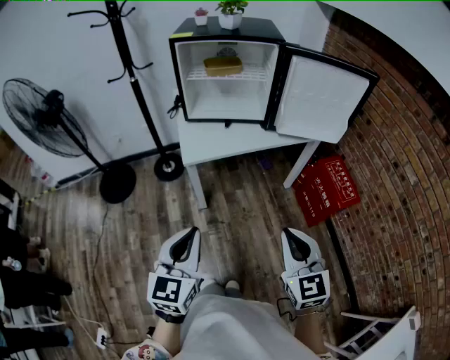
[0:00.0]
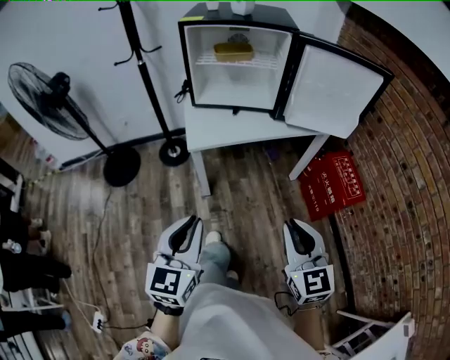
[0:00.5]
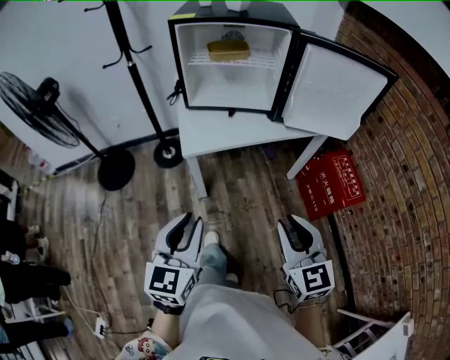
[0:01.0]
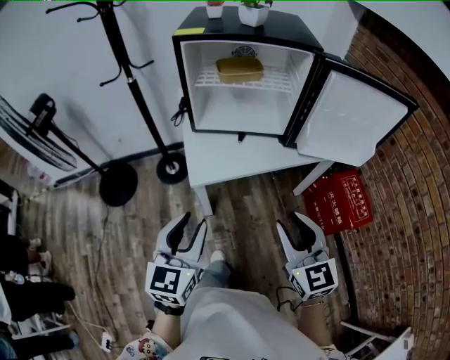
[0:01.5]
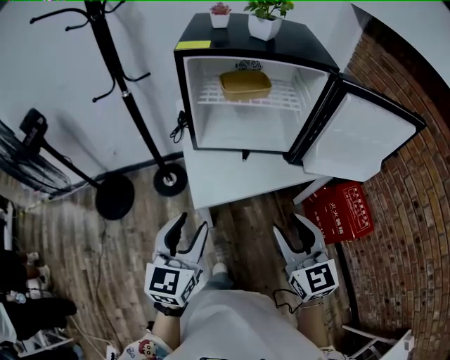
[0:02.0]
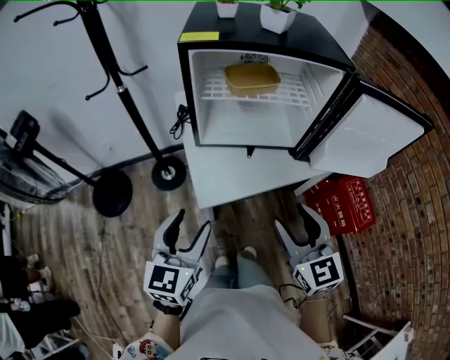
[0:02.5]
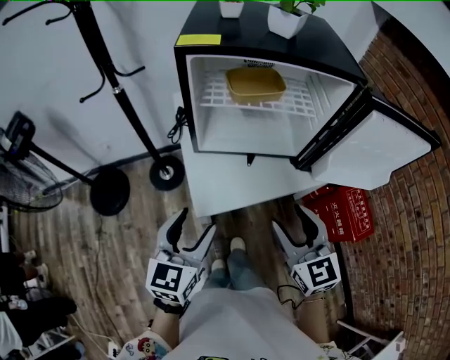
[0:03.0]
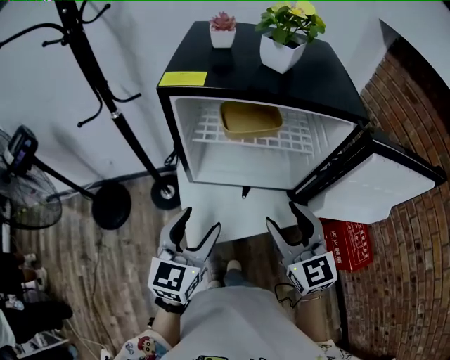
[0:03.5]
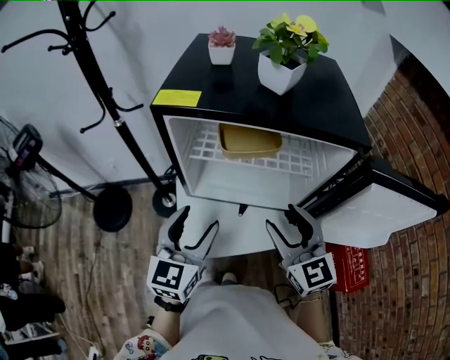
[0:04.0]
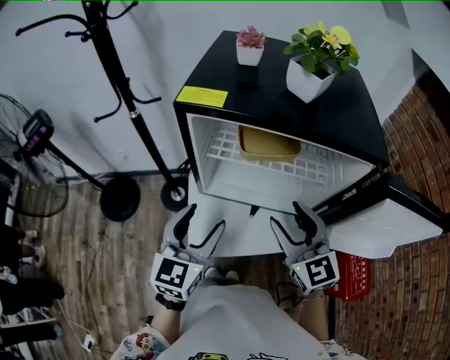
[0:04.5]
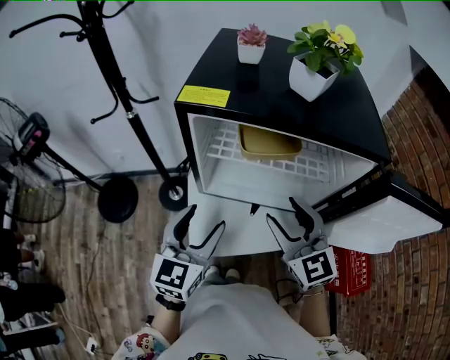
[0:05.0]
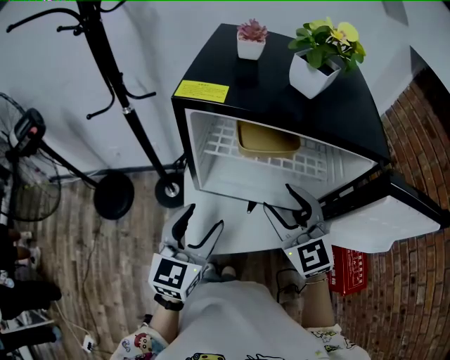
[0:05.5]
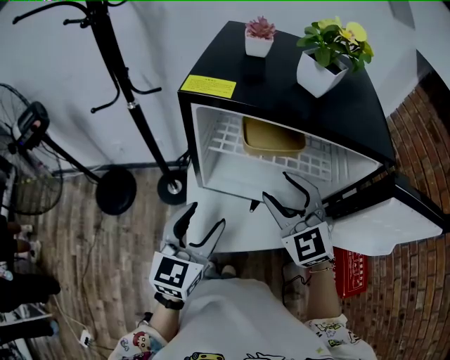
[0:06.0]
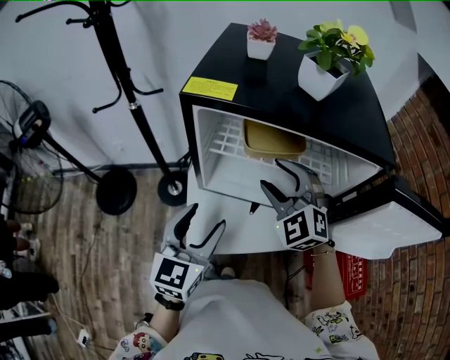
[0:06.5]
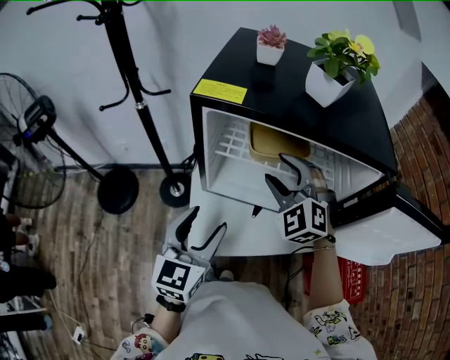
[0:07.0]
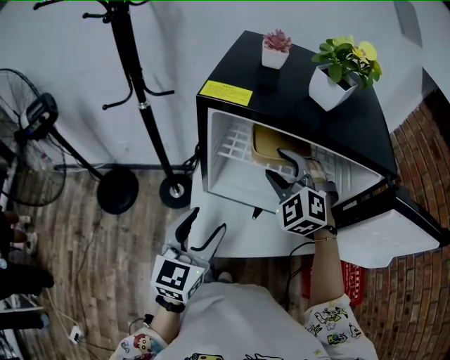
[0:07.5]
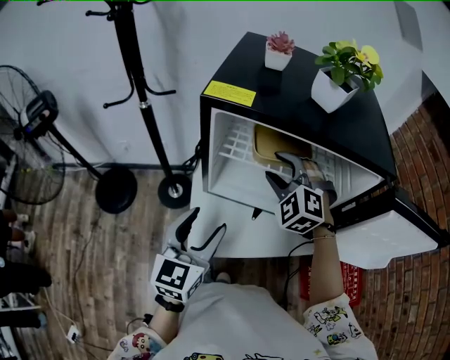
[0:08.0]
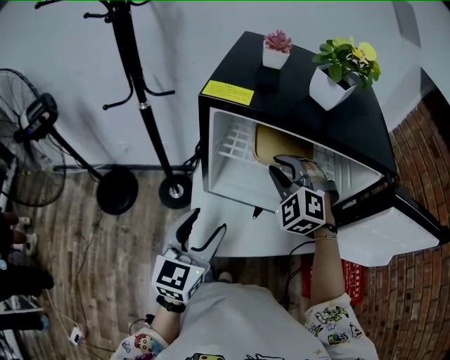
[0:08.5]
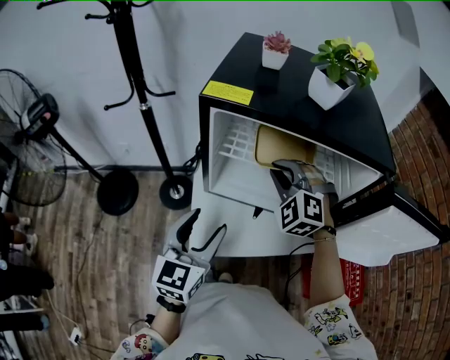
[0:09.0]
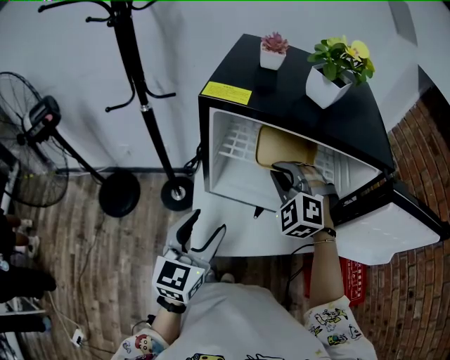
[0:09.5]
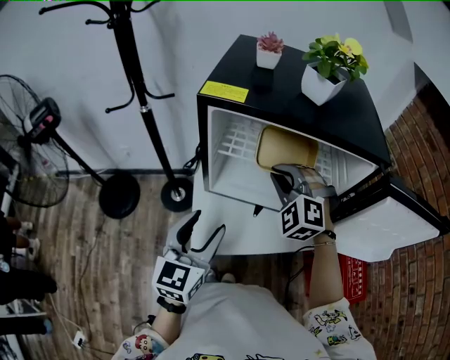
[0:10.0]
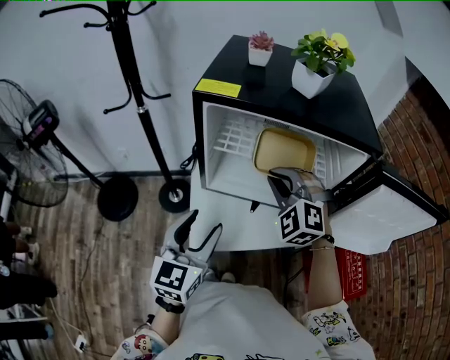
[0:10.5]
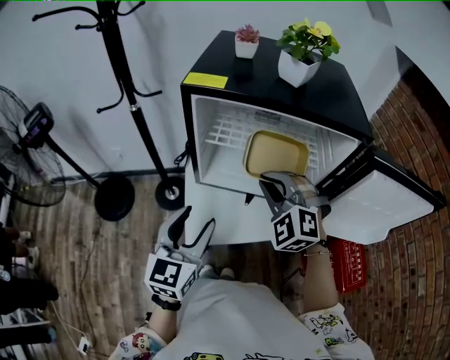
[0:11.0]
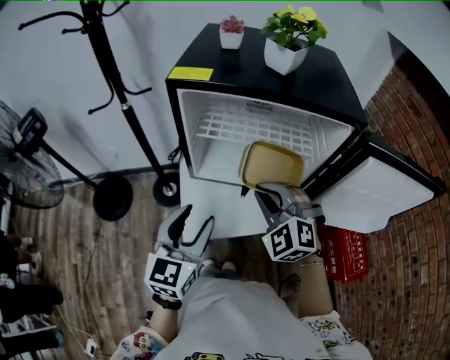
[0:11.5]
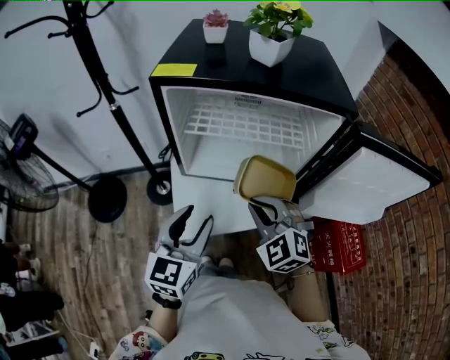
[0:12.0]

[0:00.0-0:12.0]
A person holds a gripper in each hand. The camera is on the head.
0:00.0 to 0:02.0: The grippers both shift forward by about 25 cm. The right gripper opens. Meanwhile the left gripper opens.
0:02.0 to 0:04.0: The grippers both shift forward by approximately 20 cm.
0:04.0 to 0:06.0: The right gripper is displaced forward and to the left by approximately 10 cm, and rotates about 30 degrees.
0:06.0 to 0:08.0: The right gripper heads forward, covering roughly 10 cm, and changes its angle by about 30 degrees.
0:08.0 to 0:10.0: The right gripper closes.
0:10.0 to 0:12.0: The left gripper changes place by roughly 5 cm; the right gripper travels backward by some 15 cm, and rotates some 20 degrees.

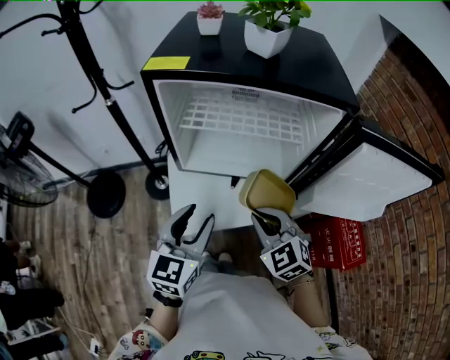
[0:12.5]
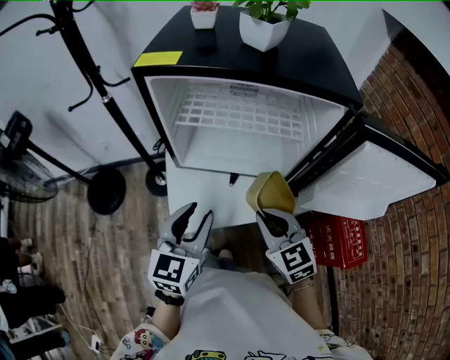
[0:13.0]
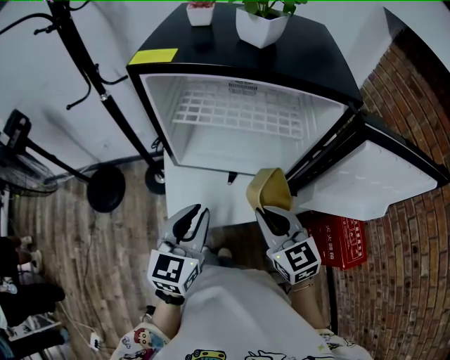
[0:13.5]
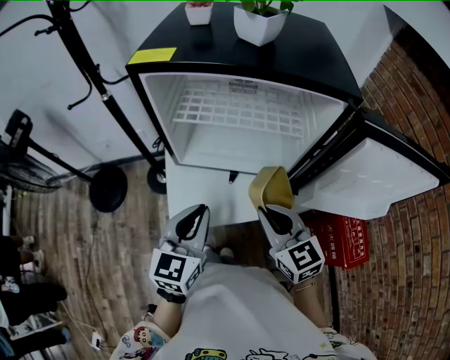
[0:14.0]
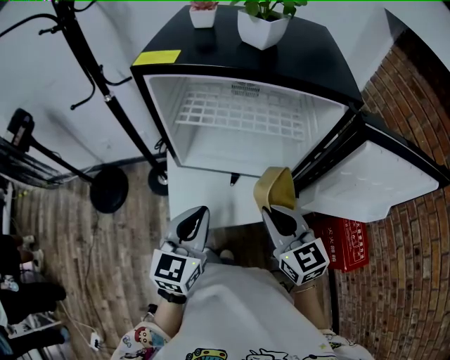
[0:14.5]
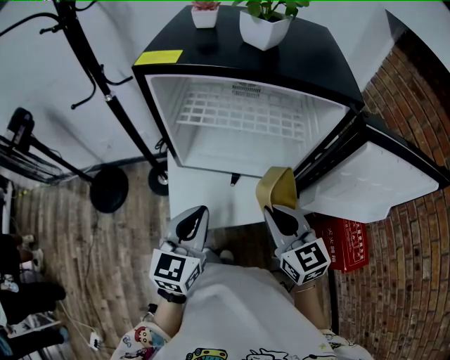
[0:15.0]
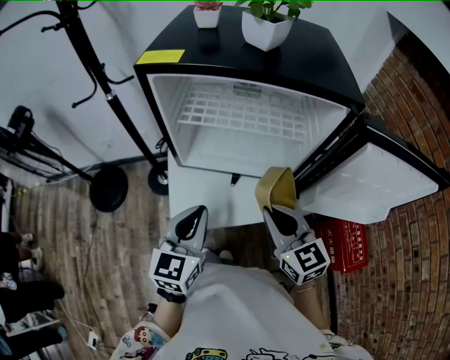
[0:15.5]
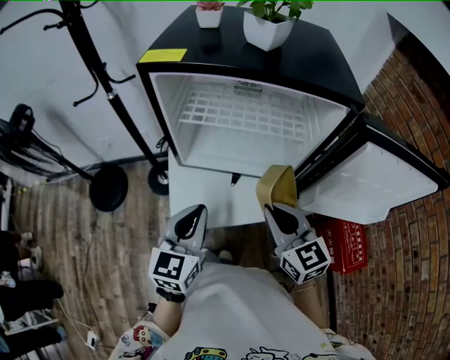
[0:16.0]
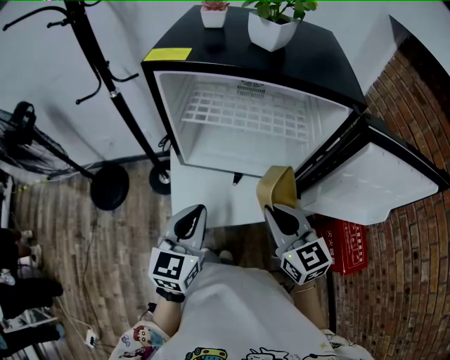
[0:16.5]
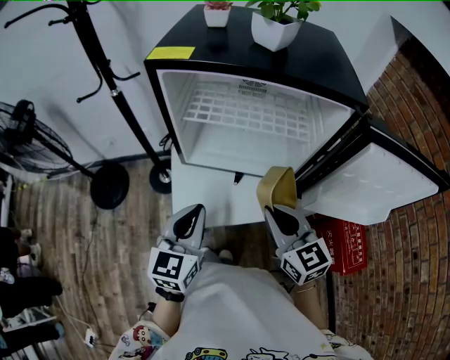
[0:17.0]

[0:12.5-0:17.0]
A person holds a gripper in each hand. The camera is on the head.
0:12.5 to 0:14.5: The right gripper rotates about 30 degrees; the left gripper closes up.
0:14.5 to 0:17.0: The grippers move only a little.

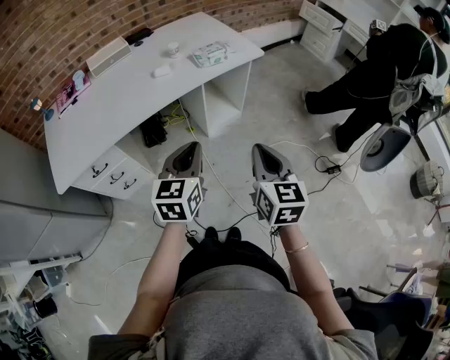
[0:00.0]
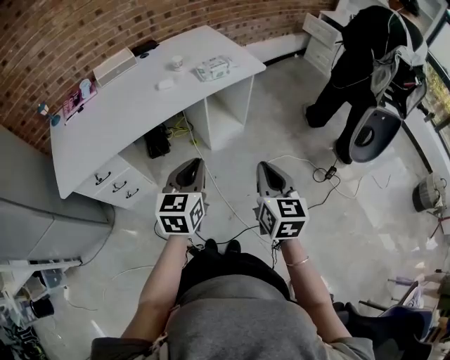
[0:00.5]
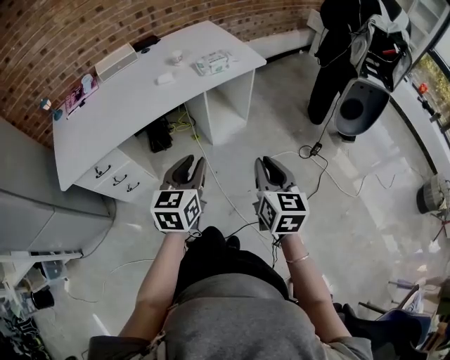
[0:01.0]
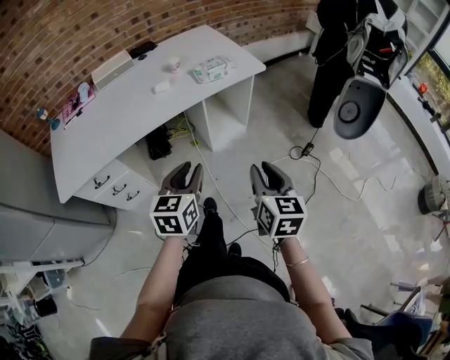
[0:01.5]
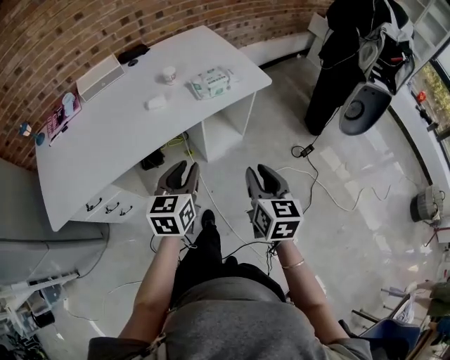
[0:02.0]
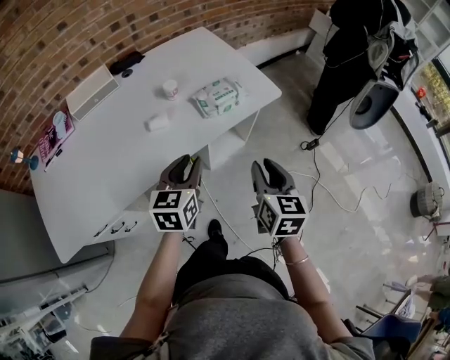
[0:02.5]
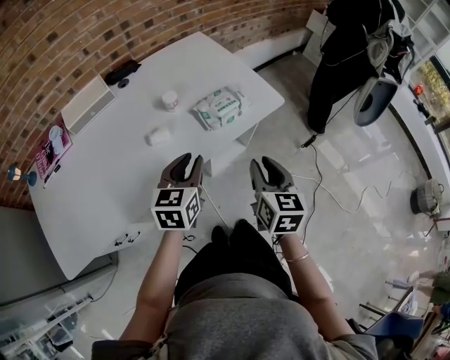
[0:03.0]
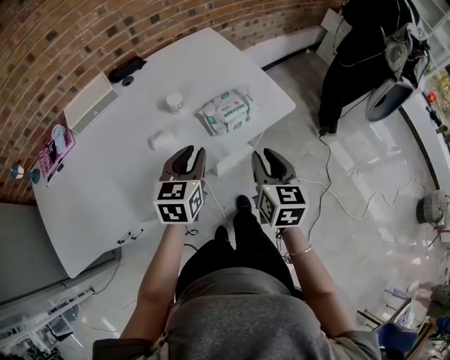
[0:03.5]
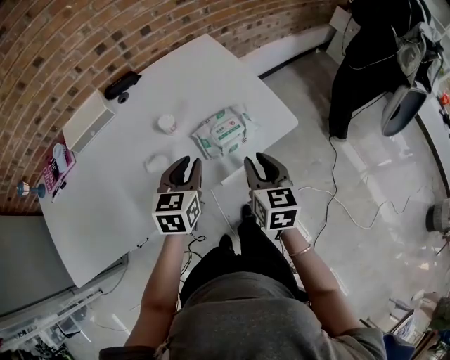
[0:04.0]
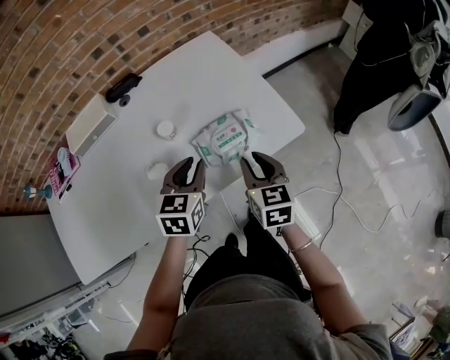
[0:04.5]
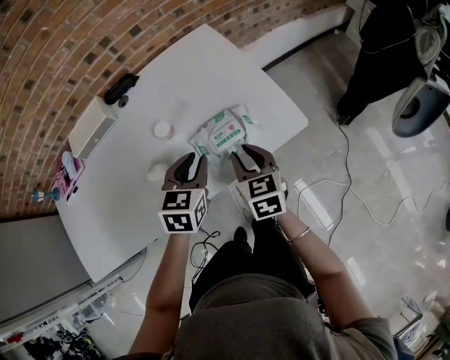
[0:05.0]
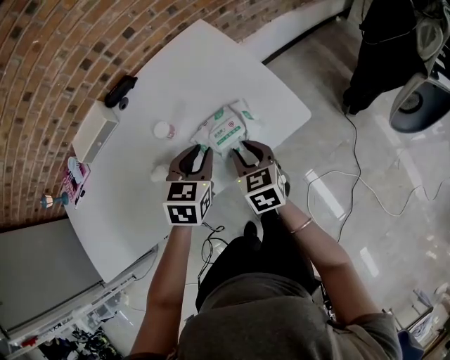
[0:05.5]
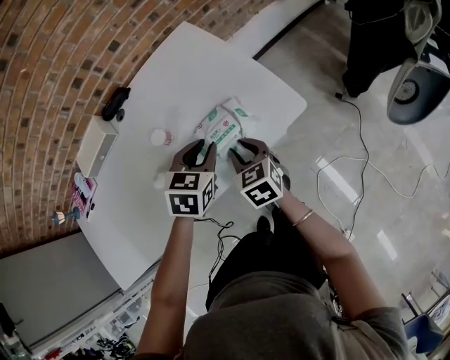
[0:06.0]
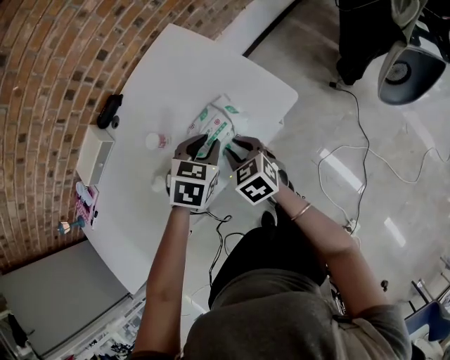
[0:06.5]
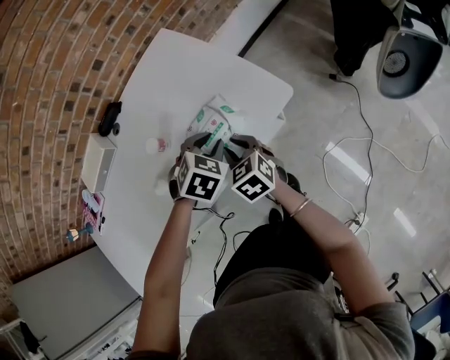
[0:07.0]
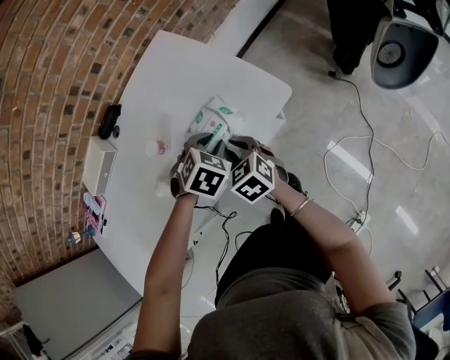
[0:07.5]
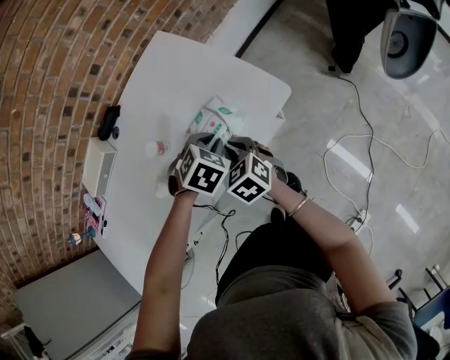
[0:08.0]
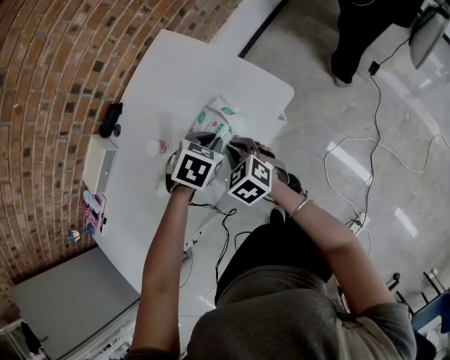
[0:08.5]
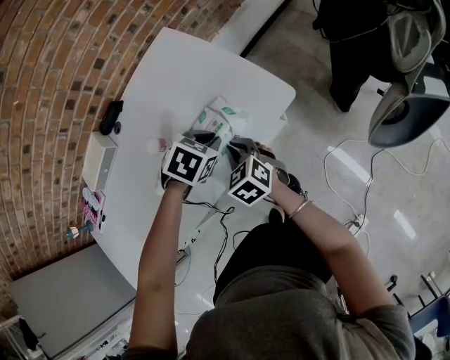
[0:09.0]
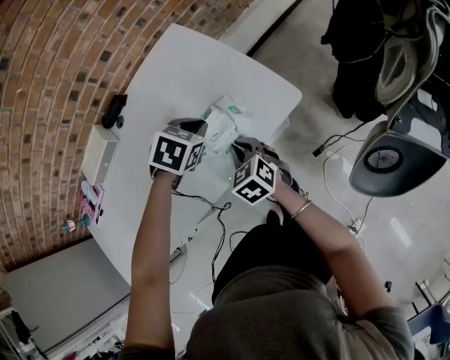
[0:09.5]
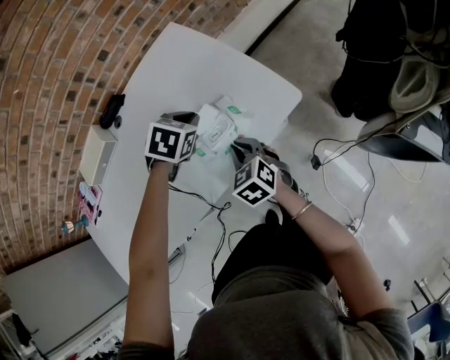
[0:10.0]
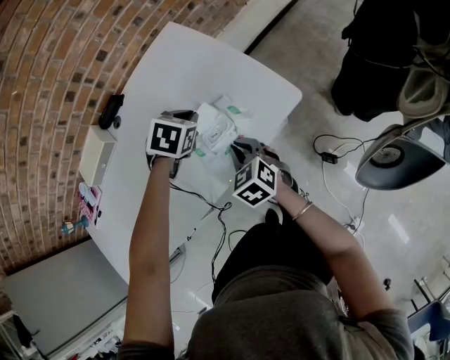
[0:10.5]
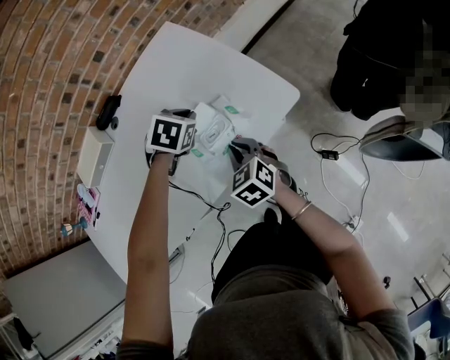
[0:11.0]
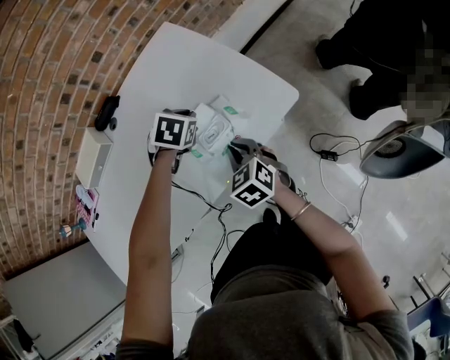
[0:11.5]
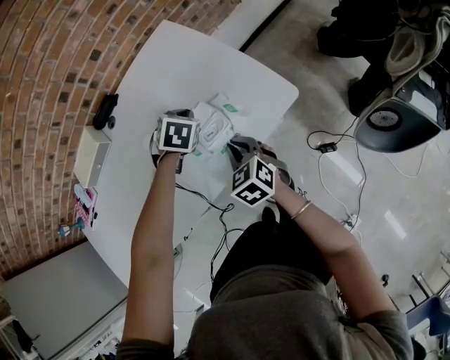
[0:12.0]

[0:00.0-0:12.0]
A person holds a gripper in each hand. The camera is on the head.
0:00.0 to 0:02.0: The grippers both shift forward by roughly 15 cm. The right gripper opens up.
0:02.0 to 0:04.0: Both grippers travel together forward, approximately 30 cm.
0:04.0 to 0:06.0: The right gripper travels downward and forward by about 10 cm. The left gripper travels to the right and forward by approximately 10 cm, and swivels about 20 degrees.
0:06.0 to 0:08.0: The left gripper goes about 5 cm downward, and changes its angle by roughly 40 degrees.
0:08.0 to 0:10.0: The left gripper goes approximately 10 cm forward.
0:10.0 to 0:12.0: The left gripper shifts by roughly 5 cm.
